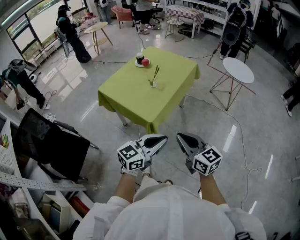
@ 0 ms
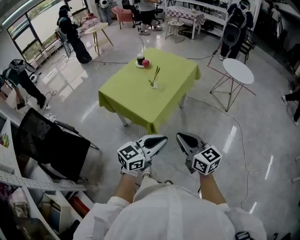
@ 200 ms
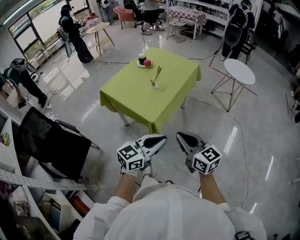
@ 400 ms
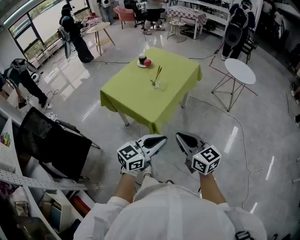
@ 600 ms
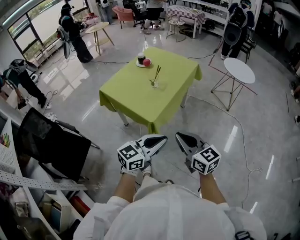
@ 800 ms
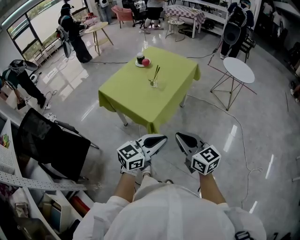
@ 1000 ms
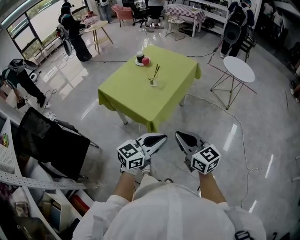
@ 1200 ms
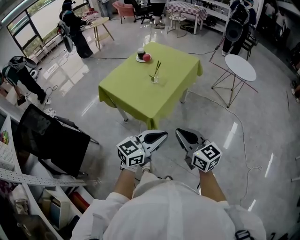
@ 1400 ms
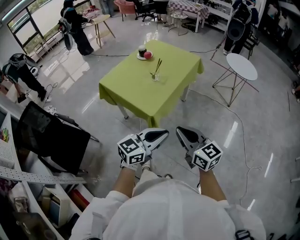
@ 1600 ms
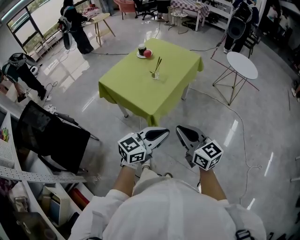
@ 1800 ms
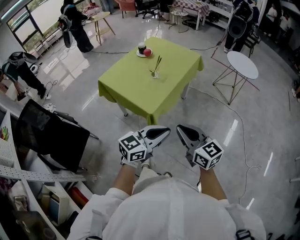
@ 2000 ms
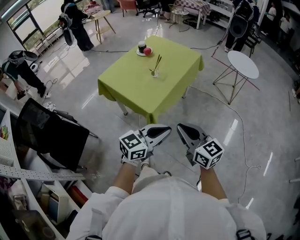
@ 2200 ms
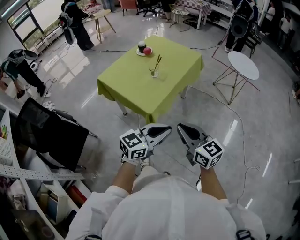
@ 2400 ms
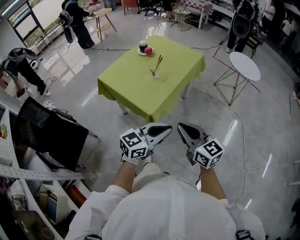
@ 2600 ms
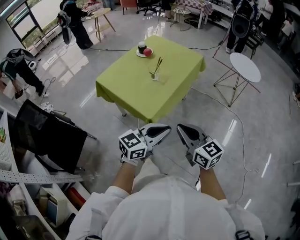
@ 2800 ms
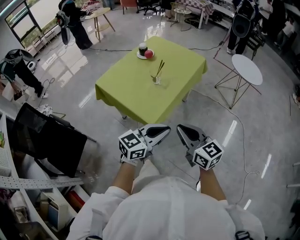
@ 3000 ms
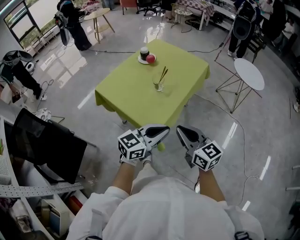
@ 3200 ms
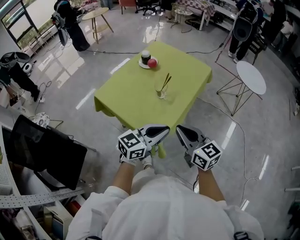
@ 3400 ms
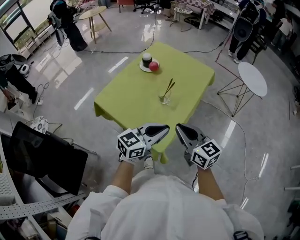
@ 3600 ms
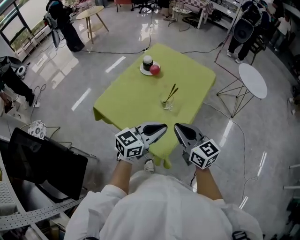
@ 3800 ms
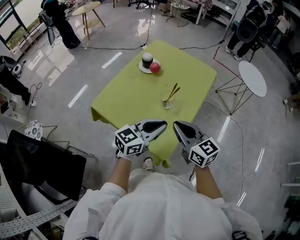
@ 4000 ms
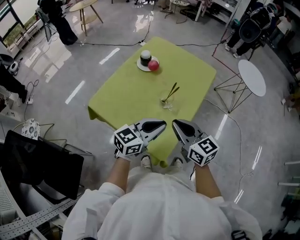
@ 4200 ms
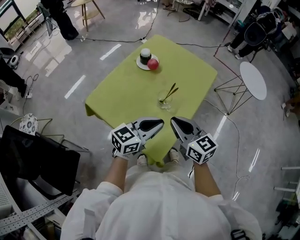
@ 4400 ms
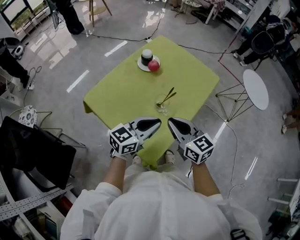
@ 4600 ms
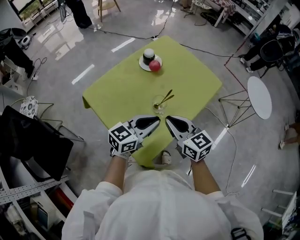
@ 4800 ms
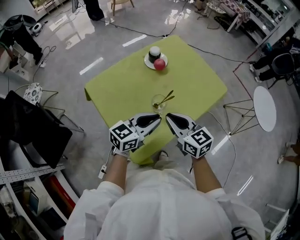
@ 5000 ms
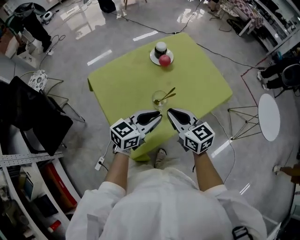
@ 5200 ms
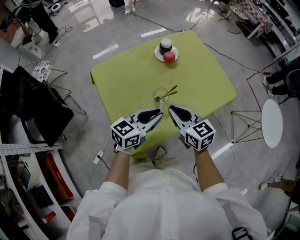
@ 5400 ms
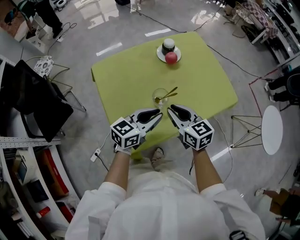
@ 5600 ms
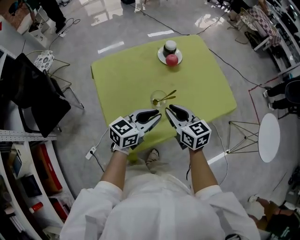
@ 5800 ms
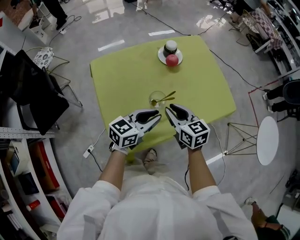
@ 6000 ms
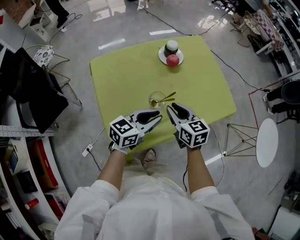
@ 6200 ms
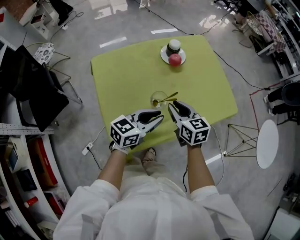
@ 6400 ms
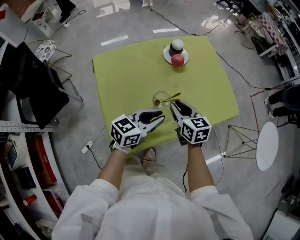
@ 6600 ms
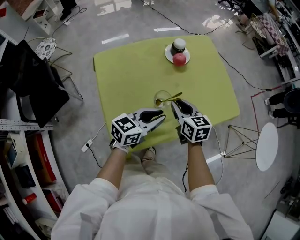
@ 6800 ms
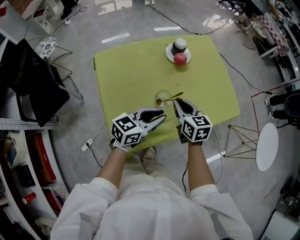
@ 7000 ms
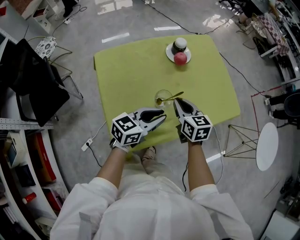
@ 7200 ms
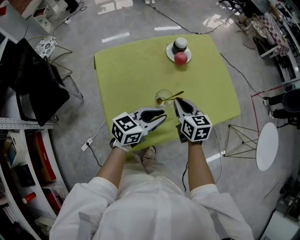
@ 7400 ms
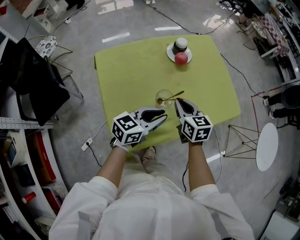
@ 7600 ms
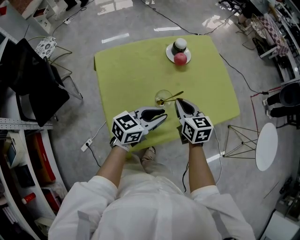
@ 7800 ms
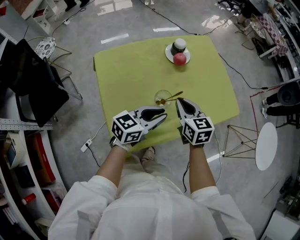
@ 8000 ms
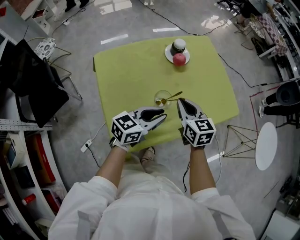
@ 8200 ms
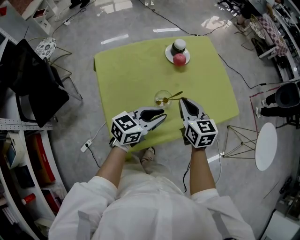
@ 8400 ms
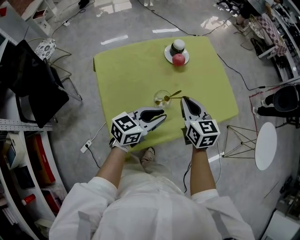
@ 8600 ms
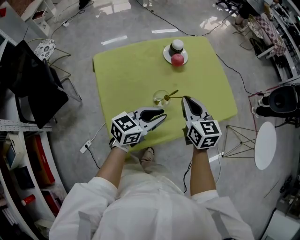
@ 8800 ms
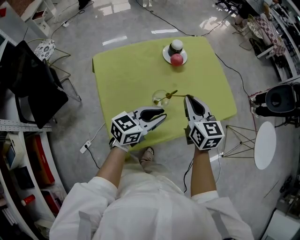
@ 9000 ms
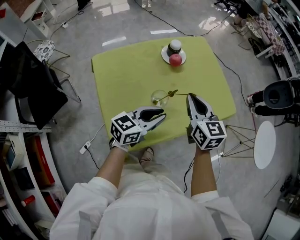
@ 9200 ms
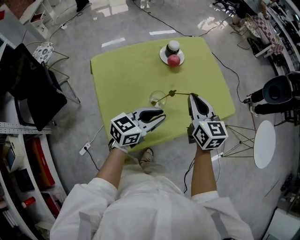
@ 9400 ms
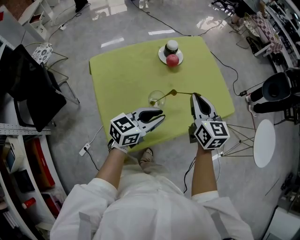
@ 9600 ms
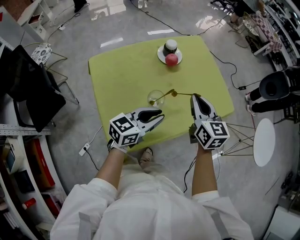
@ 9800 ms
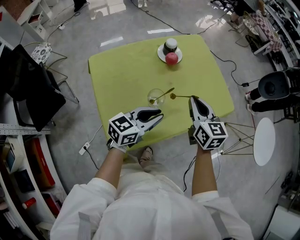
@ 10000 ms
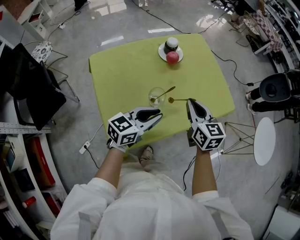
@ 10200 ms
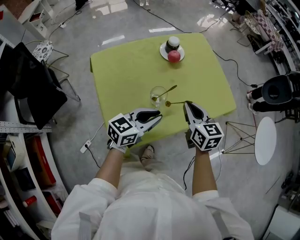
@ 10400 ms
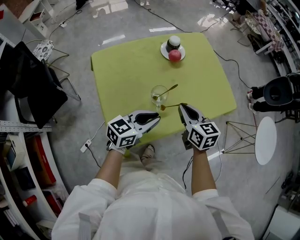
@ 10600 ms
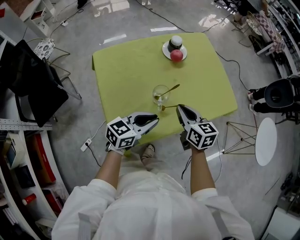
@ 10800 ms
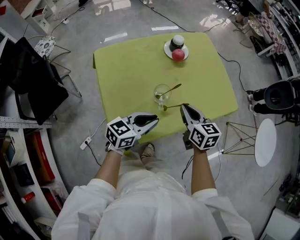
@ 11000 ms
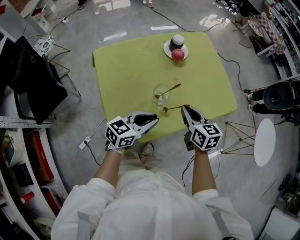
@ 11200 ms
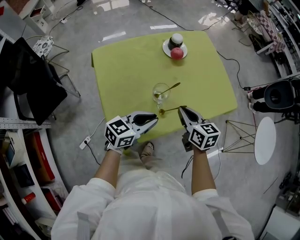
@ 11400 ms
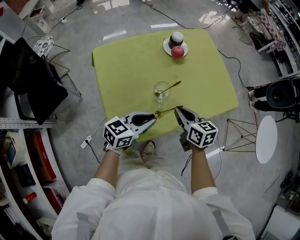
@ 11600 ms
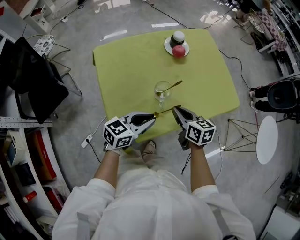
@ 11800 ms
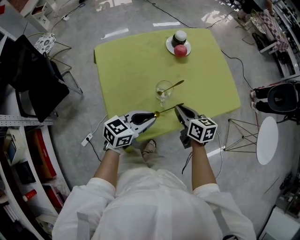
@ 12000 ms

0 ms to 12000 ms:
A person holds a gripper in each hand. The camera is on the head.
0 ms to 1600 ms: Both grippers stay about where they are.
1600 ms to 3000 ms: The two grippers go roughly 10 cm forward.
3000 ms to 4400 ms: Both grippers move forward and to the left, roughly 25 cm.
4400 ms to 6000 ms: The left gripper changes place by about 10 cm, and swivels roughly 40 degrees. Meanwhile the right gripper shifts by approximately 15 cm, and changes its angle by roughly 30 degrees.
6000 ms to 7600 ms: There are only small adjustments of the grippers.
7600 ms to 9000 ms: The right gripper goes about 10 cm upward.
9000 ms to 10400 ms: The right gripper changes place by roughly 5 cm.
10400 ms to 12000 ms: The right gripper heads downward, covering roughly 10 cm, and changes its angle by roughly 20 degrees; the left gripper shifts by some 5 cm.

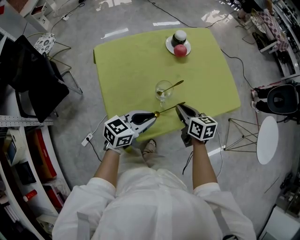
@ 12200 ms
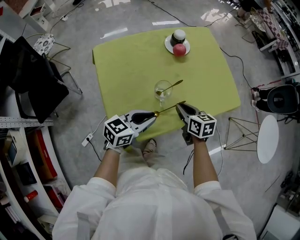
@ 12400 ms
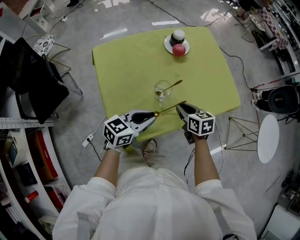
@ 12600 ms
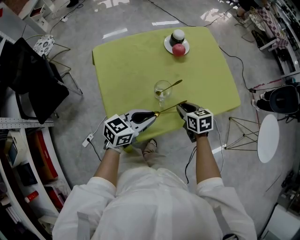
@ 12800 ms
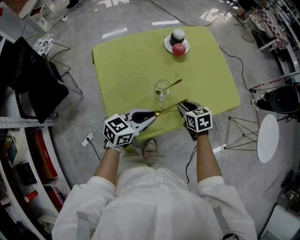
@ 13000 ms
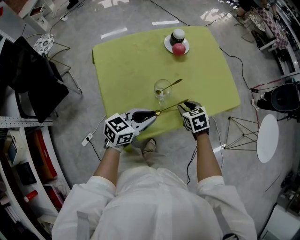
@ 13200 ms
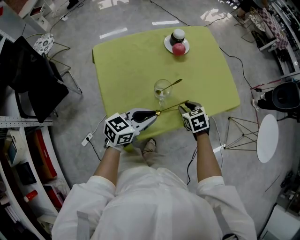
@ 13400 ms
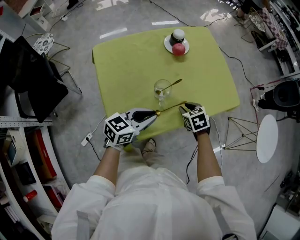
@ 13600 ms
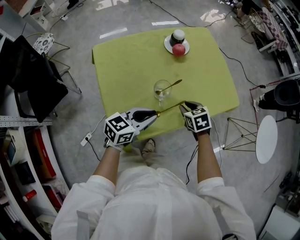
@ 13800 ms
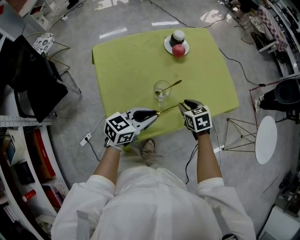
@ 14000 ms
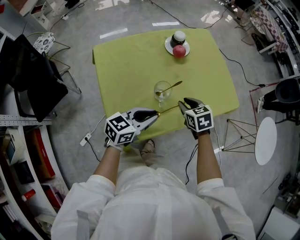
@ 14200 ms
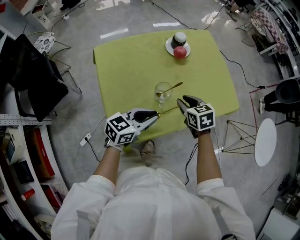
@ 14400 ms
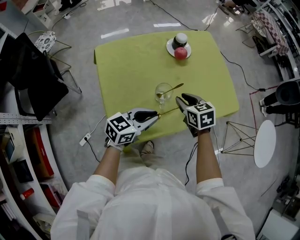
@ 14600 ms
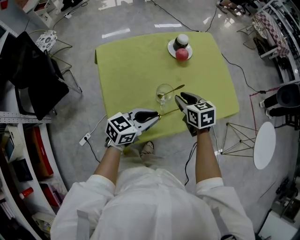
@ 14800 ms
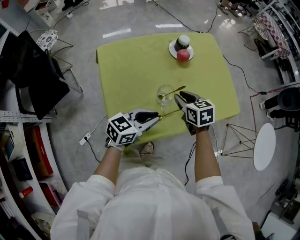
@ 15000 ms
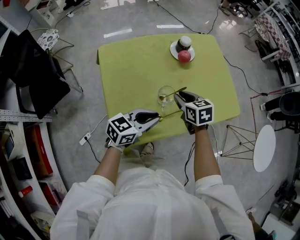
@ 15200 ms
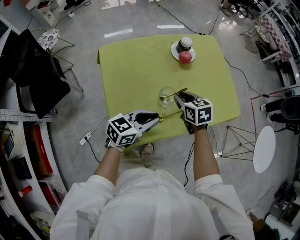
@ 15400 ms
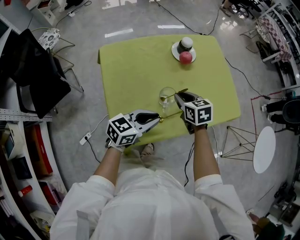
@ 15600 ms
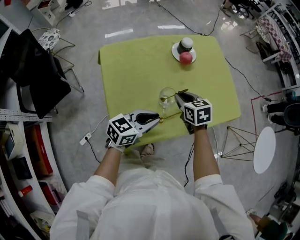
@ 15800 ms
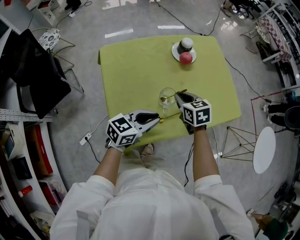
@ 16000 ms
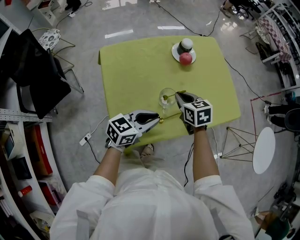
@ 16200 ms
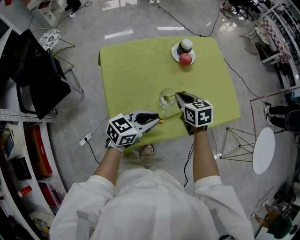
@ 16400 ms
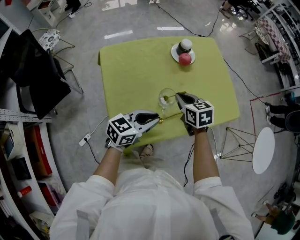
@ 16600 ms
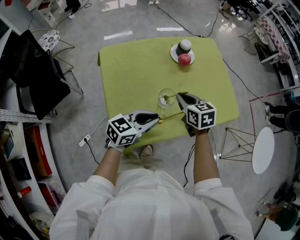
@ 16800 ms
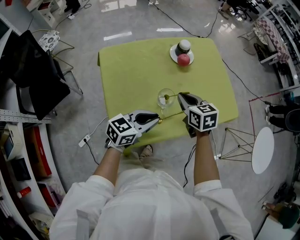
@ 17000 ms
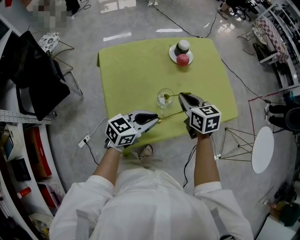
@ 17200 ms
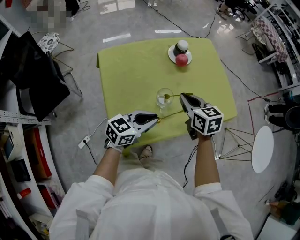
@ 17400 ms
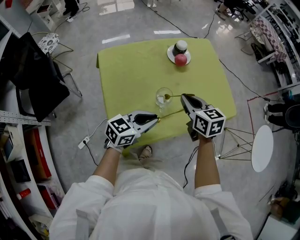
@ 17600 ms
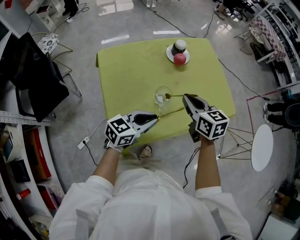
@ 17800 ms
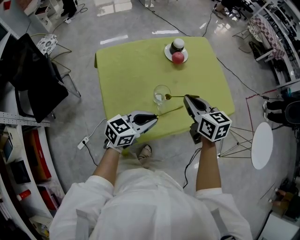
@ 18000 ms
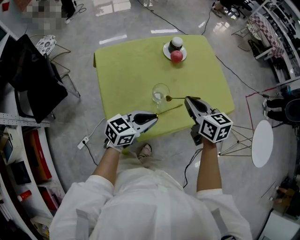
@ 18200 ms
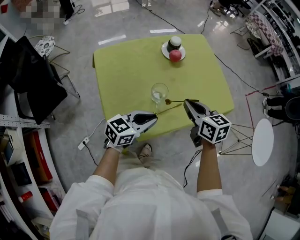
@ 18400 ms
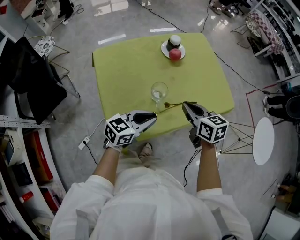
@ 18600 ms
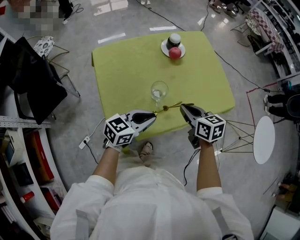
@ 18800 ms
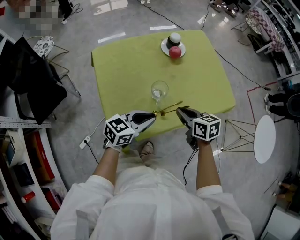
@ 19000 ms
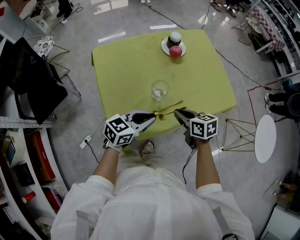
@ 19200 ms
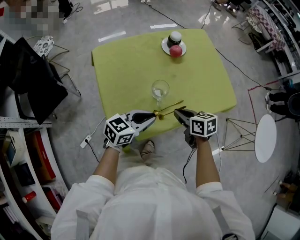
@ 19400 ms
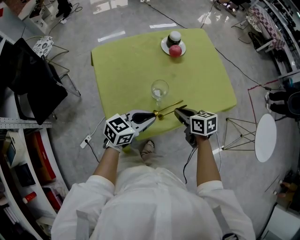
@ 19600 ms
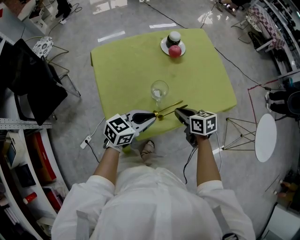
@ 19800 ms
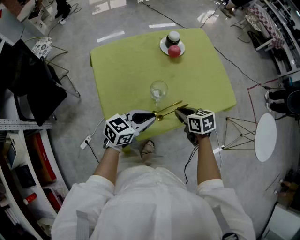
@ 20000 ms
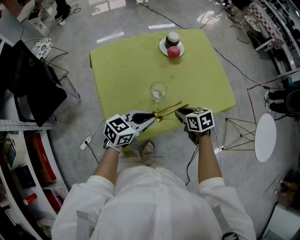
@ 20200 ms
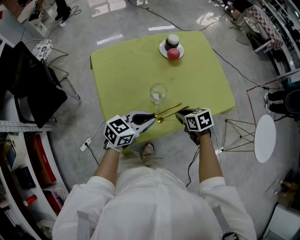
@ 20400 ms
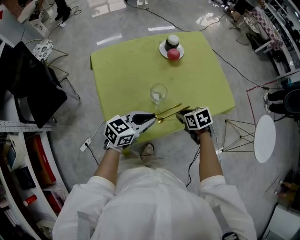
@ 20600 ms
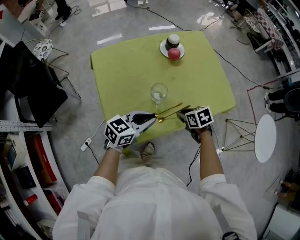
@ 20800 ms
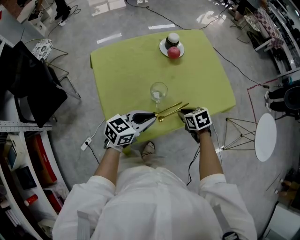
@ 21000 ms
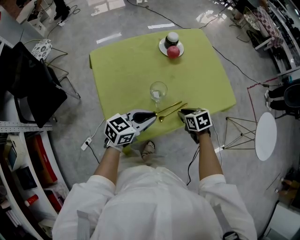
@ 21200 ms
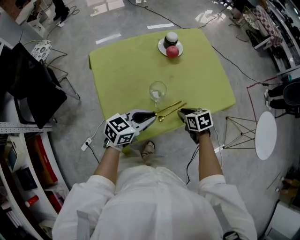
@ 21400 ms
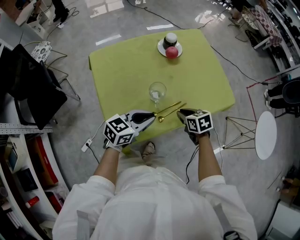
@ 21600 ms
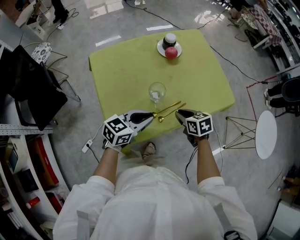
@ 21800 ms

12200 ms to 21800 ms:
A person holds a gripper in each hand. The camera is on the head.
12200 ms to 13800 ms: The right gripper shifts by roughly 5 cm, rotates roughly 30 degrees, and opens up.
13800 ms to 15400 ms: The right gripper is displaced to the left, upward and forward by roughly 10 cm.
15400 ms to 17000 ms: The grippers make only small movements.
17000 ms to 18600 ms: The right gripper travels backward and to the right by approximately 10 cm.
18600 ms to 20200 ms: The right gripper heads downward, covering some 10 cm, and changes its angle by approximately 20 degrees.
20200 ms to 21800 ms: The grippers make only small movements.

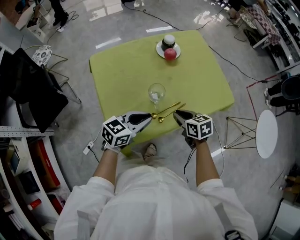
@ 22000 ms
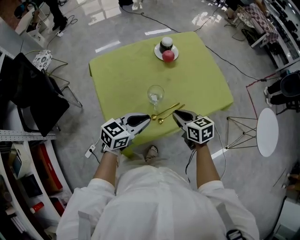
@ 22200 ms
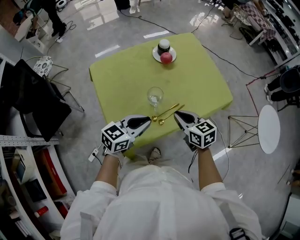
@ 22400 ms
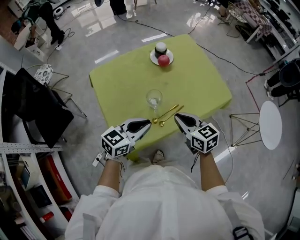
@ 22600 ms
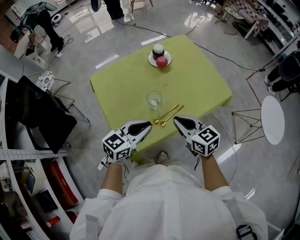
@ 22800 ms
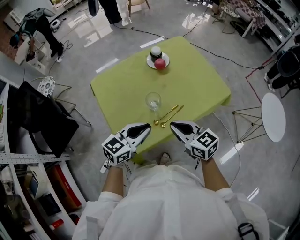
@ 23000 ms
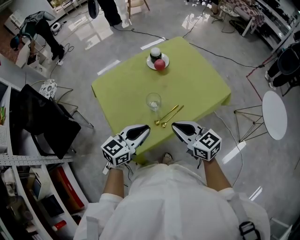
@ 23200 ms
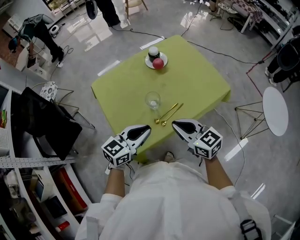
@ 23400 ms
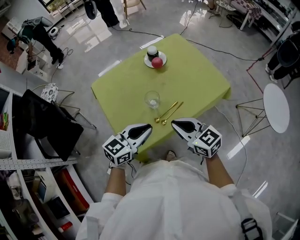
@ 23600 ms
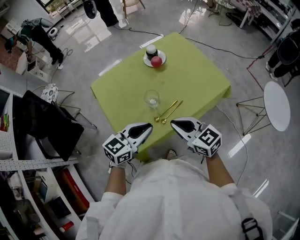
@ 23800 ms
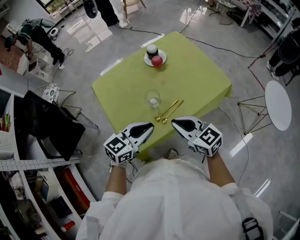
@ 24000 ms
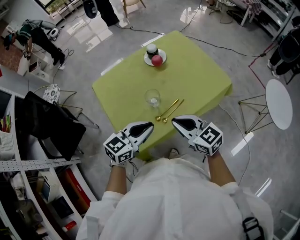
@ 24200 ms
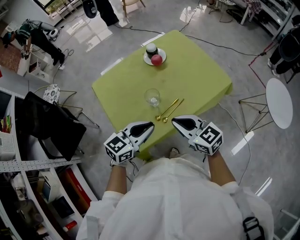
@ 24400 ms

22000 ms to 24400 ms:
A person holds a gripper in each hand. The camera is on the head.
22000 ms to 23200 ms: The left gripper moves upward, about 5 cm; the right gripper is displaced upward and backward by roughly 15 cm, and rotates some 30 degrees.
23200 ms to 24400 ms: The grippers make only small movements.
